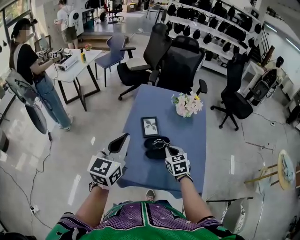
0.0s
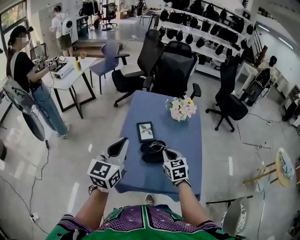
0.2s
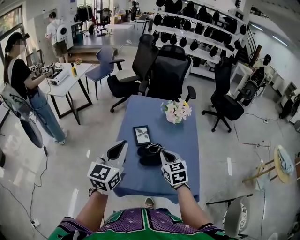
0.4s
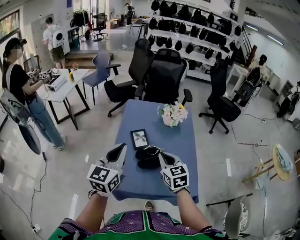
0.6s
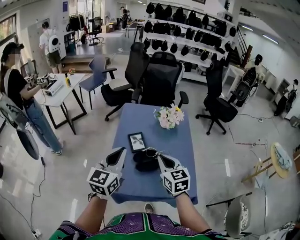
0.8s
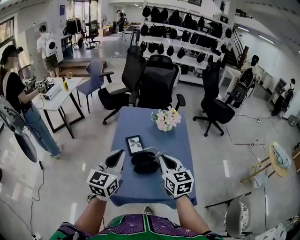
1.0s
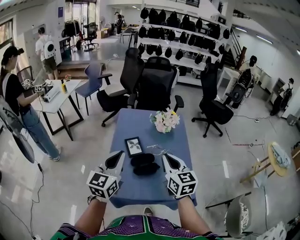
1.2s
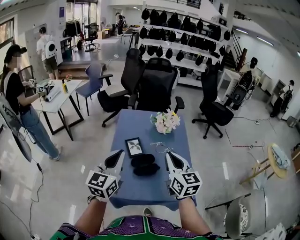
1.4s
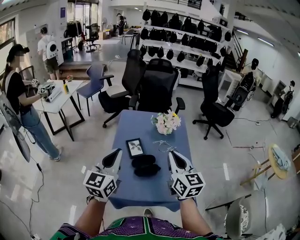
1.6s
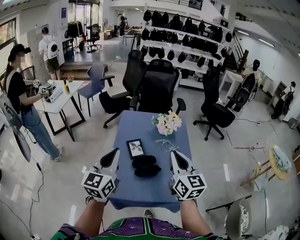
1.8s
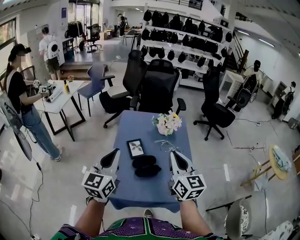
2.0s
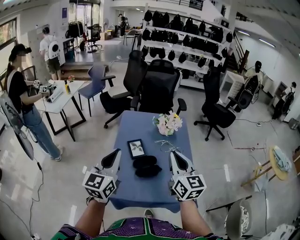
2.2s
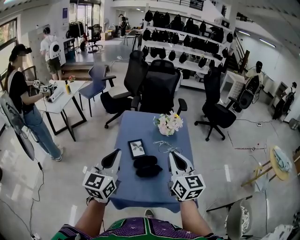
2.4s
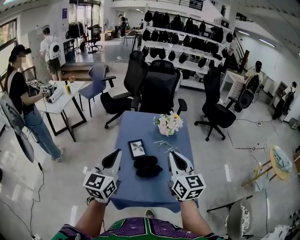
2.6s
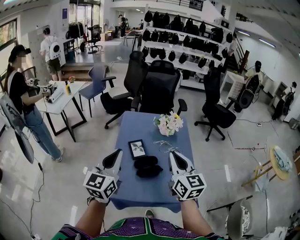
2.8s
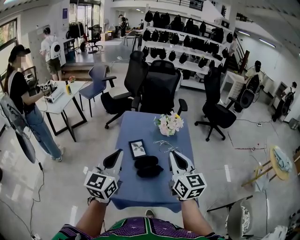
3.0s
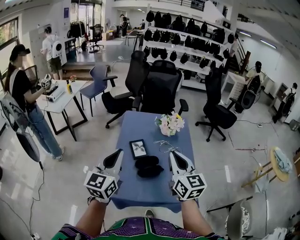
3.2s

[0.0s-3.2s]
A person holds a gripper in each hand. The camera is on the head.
0.0s to 1.6s: The left gripper shifts by some 5 cm; the right gripper is displaced upward by about 25 cm, and points its fingers some 40 degrees further upward.
1.6s to 3.2s: The grippers make only small movements.

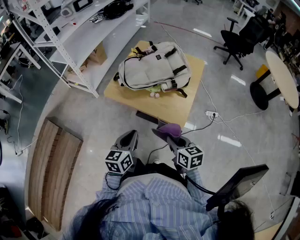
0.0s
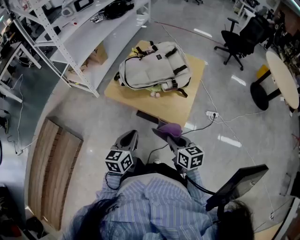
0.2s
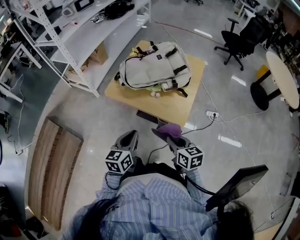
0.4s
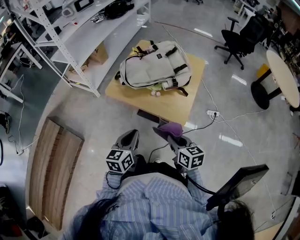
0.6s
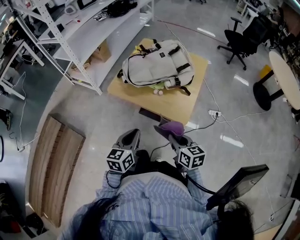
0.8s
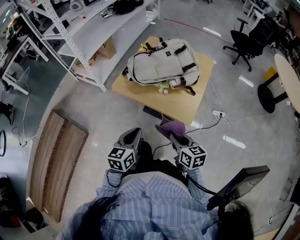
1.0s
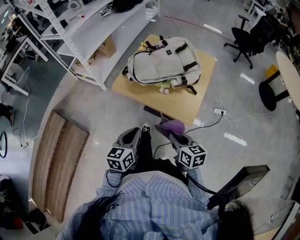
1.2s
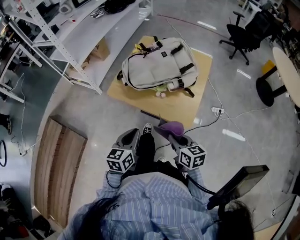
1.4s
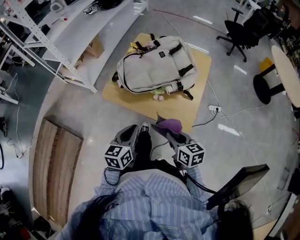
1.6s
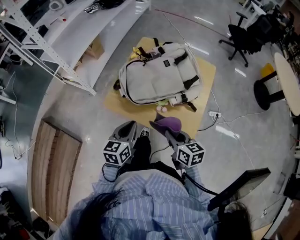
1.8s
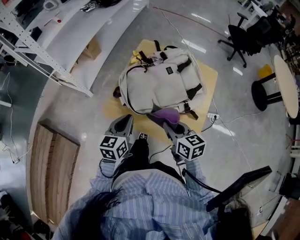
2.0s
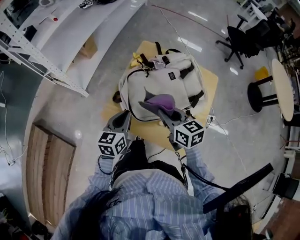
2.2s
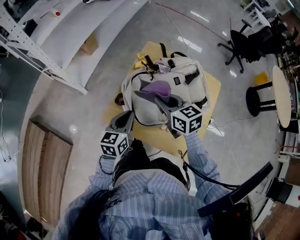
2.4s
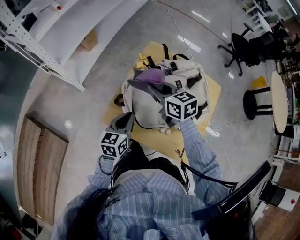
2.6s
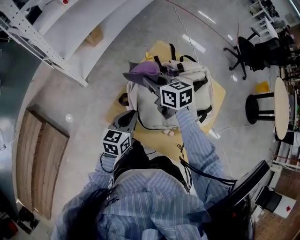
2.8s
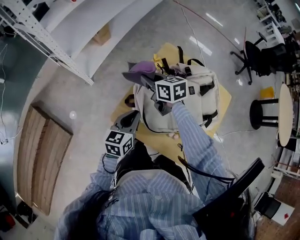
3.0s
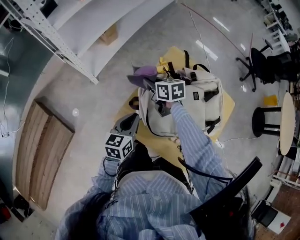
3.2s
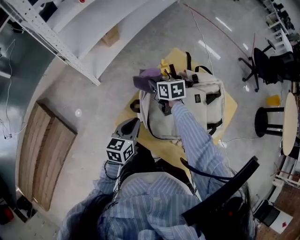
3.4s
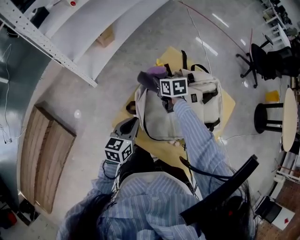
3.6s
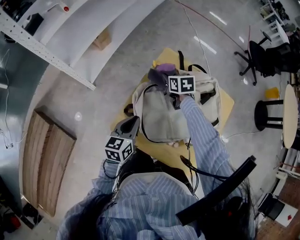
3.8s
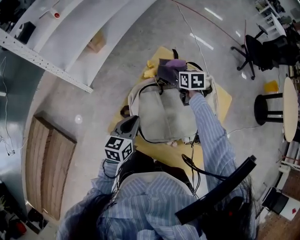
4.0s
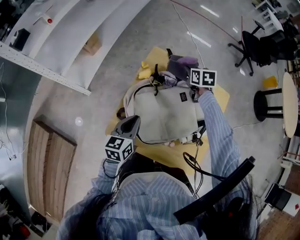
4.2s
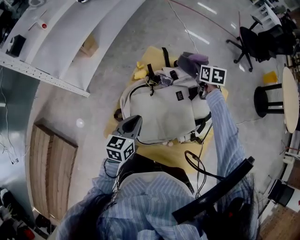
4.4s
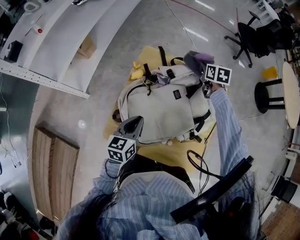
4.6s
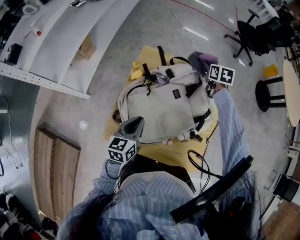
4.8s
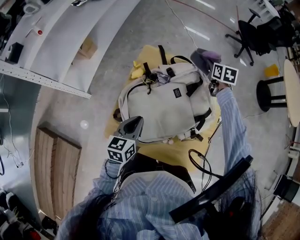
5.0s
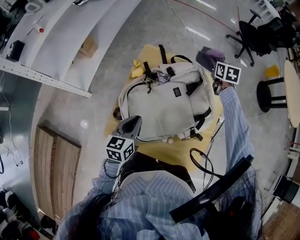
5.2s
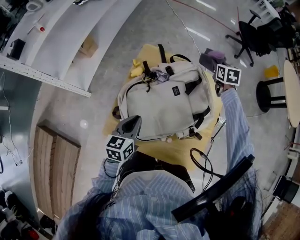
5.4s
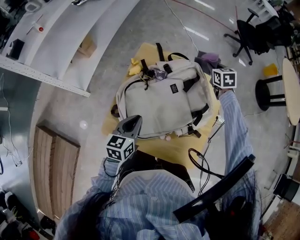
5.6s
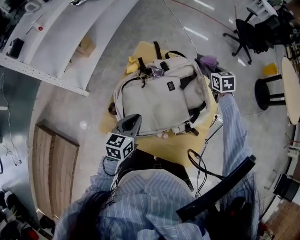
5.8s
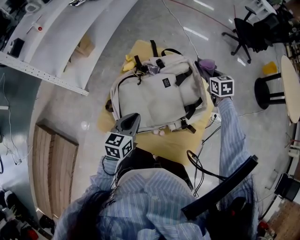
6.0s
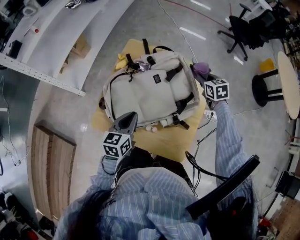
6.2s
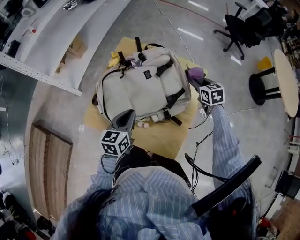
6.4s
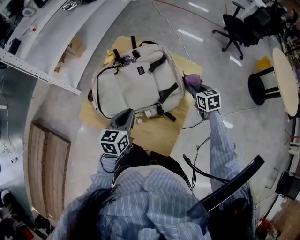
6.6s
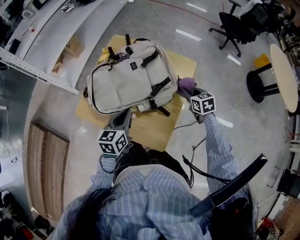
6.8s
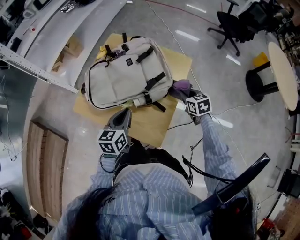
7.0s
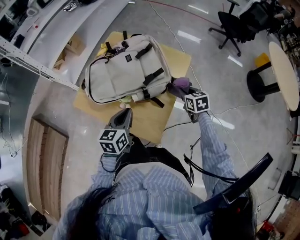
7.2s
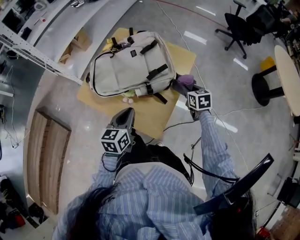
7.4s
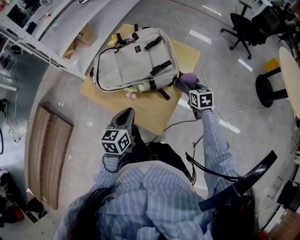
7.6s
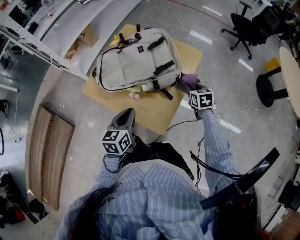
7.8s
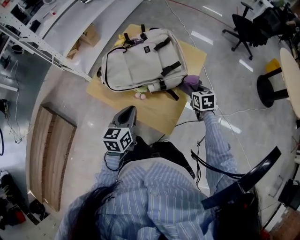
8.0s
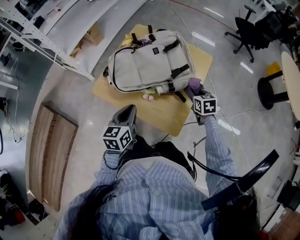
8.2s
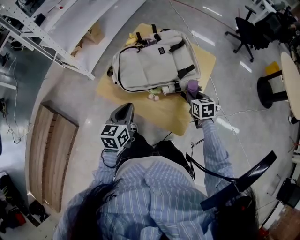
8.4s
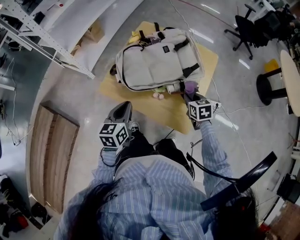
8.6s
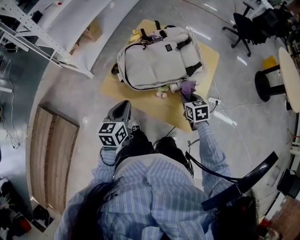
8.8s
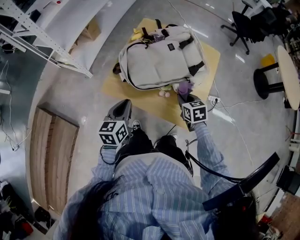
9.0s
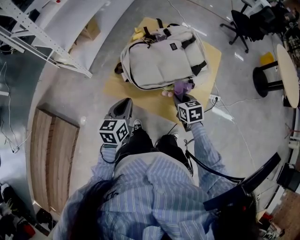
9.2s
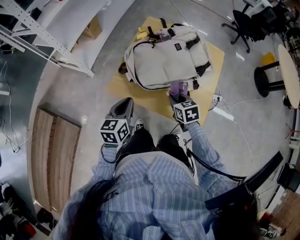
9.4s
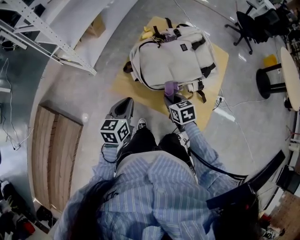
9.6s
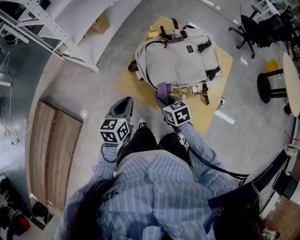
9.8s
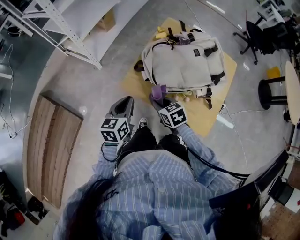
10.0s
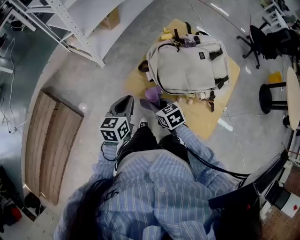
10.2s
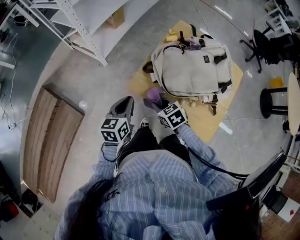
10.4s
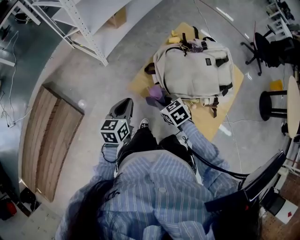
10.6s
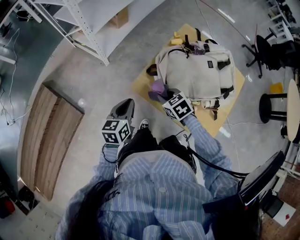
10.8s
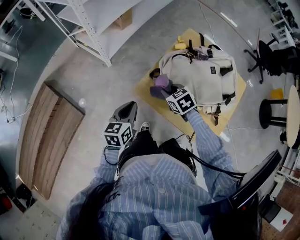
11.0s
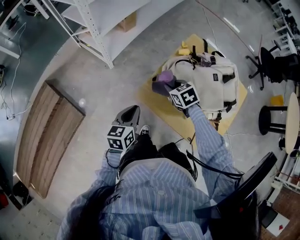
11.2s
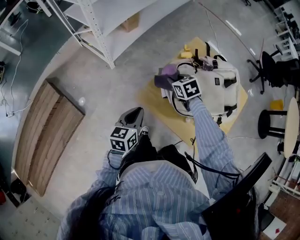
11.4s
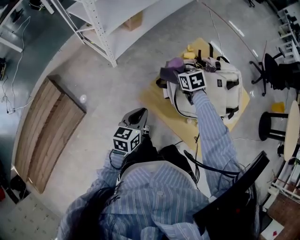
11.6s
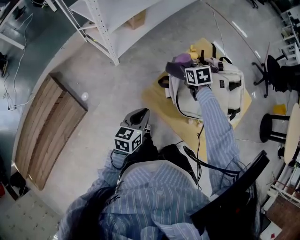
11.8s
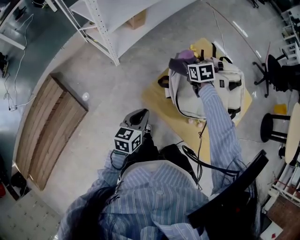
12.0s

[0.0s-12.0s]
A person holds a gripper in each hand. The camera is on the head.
0.0s to 1.6s: The grippers both shift forward by roughly 10 cm.
1.6s to 3.0s: The left gripper goes some 30 cm forward. The right gripper is displaced forward and to the left by about 50 cm, and changes its angle by roughly 20 degrees.
3.0s to 4.4s: The right gripper shifts by some 40 cm, and turns by roughly 40 degrees; the left gripper shifts by about 10 cm.
4.4s to 6.0s: The right gripper heads to the right and backward, covering about 15 cm. The left gripper moves to the right, about 5 cm.
6.0s to 7.6s: The left gripper goes approximately 25 cm backward and to the right, while the right gripper is displaced backward by roughly 25 cm.
7.6s to 9.0s: Both grippers move to the left, some 25 cm.
9.0s to 10.4s: The left gripper goes roughly 15 cm to the left; the right gripper goes approximately 30 cm to the left, and rotates roughly 30 degrees.
10.4s to 12.0s: The right gripper goes roughly 30 cm forward.

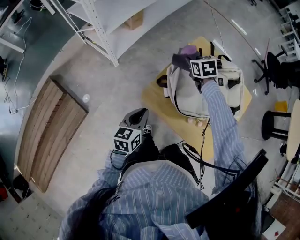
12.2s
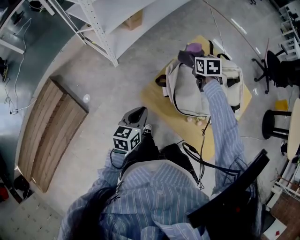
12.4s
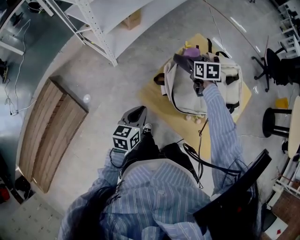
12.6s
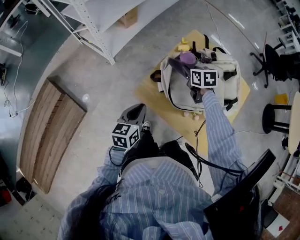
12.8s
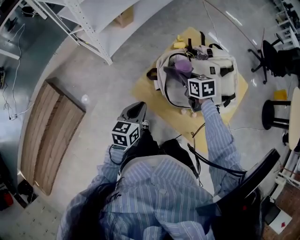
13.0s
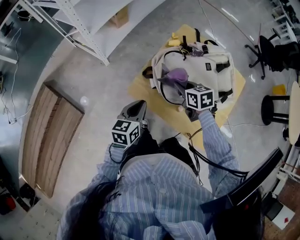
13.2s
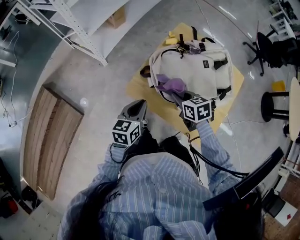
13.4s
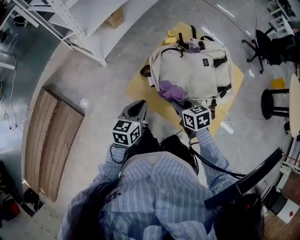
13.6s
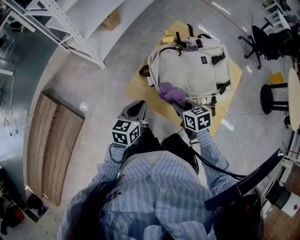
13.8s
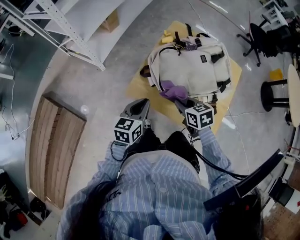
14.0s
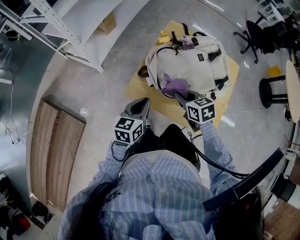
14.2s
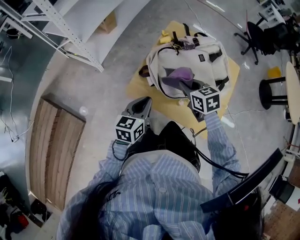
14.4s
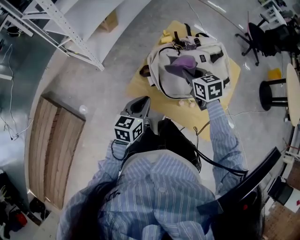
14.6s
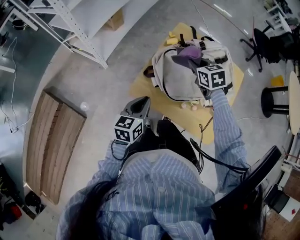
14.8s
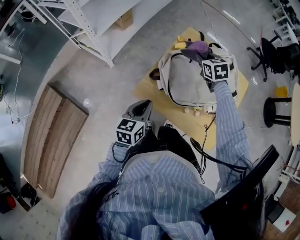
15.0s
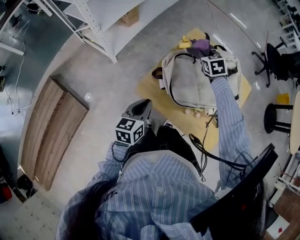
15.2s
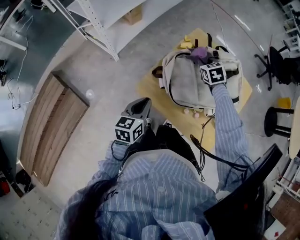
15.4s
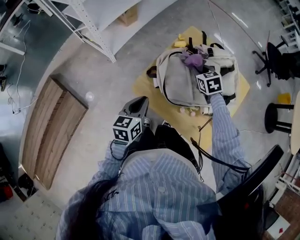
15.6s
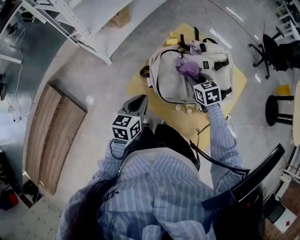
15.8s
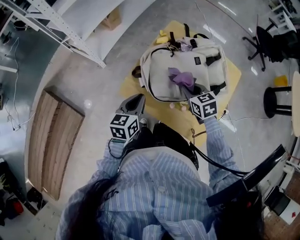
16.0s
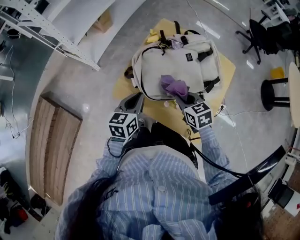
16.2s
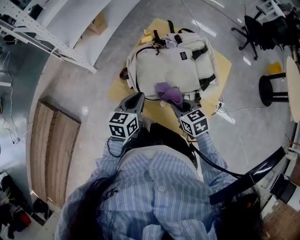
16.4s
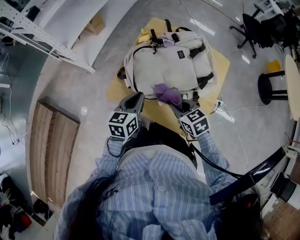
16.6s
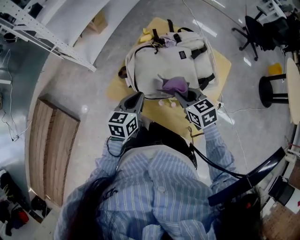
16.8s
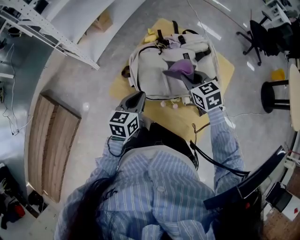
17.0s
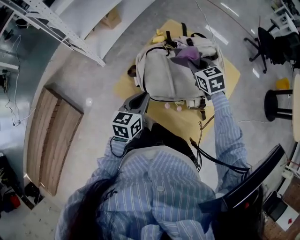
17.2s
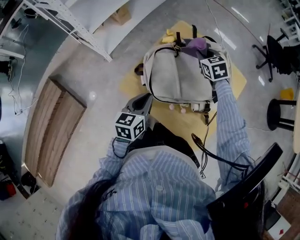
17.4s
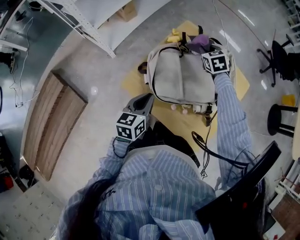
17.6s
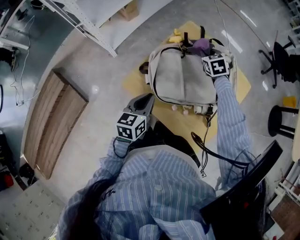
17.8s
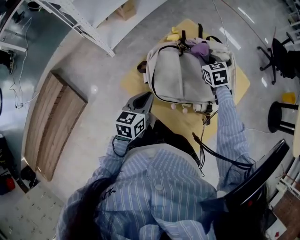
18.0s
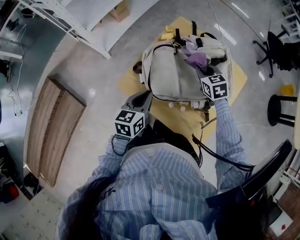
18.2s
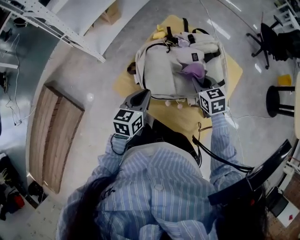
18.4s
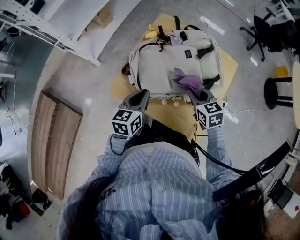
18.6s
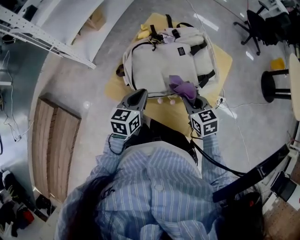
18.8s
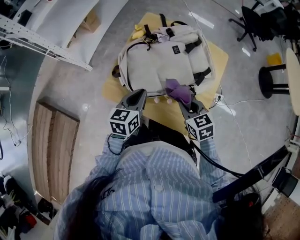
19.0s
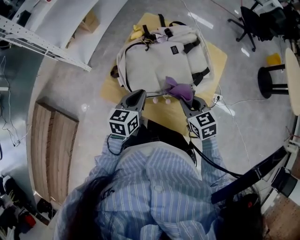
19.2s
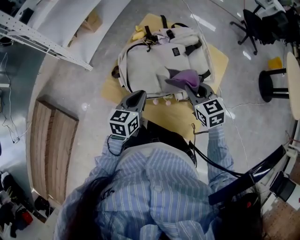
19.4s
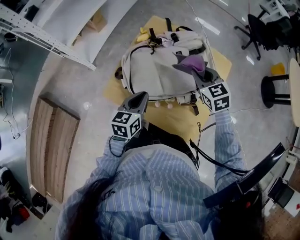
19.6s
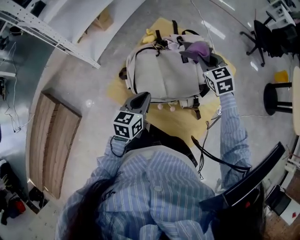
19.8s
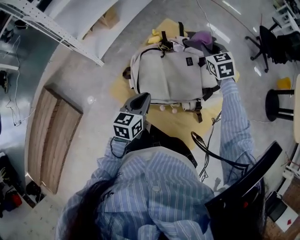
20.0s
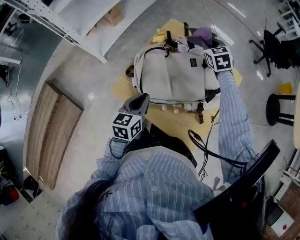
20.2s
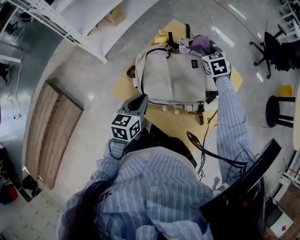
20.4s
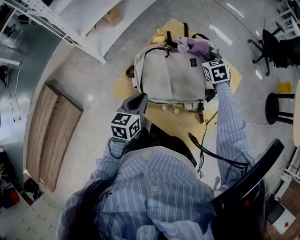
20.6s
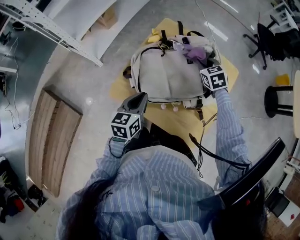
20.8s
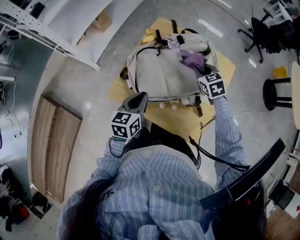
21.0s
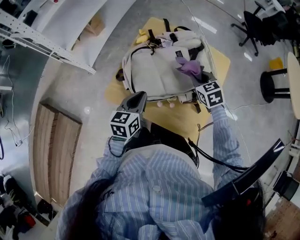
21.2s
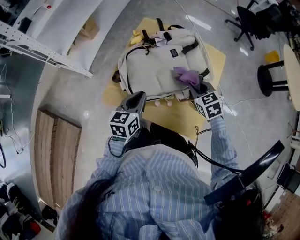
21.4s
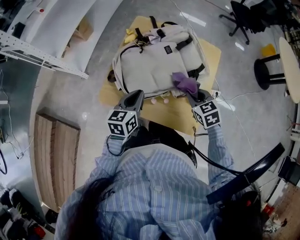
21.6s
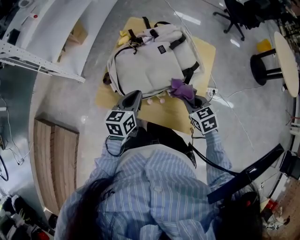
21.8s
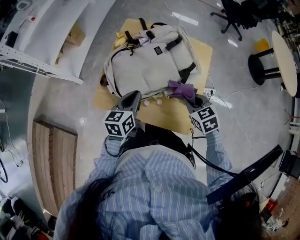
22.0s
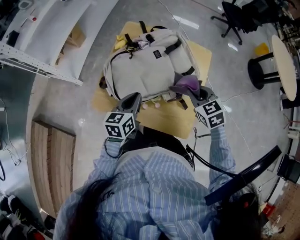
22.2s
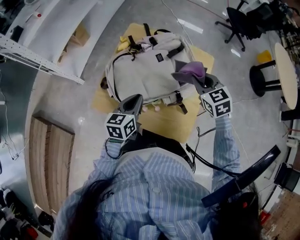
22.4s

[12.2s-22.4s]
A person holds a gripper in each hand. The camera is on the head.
12.2s to 13.6s: The right gripper is displaced backward by about 25 cm, while the left gripper is displaced to the right by about 5 cm.
13.6s to 15.2s: The right gripper goes roughly 25 cm forward, and turns by about 30 degrees.
15.2s to 16.6s: The left gripper moves to the right, about 10 cm. Meanwhile the right gripper travels backward by some 30 cm, and rotates some 20 degrees.
16.6s to 18.0s: The right gripper is displaced forward by approximately 25 cm.
18.0s to 19.4s: The right gripper moves backward, approximately 20 cm, while the left gripper shifts approximately 5 cm to the right.
19.4s to 21.0s: The right gripper travels forward by approximately 10 cm.
21.0s to 22.4s: The left gripper goes about 5 cm to the right. Meanwhile the right gripper shifts about 10 cm upward and to the right, and moves about 20 cm backward and comes back.
